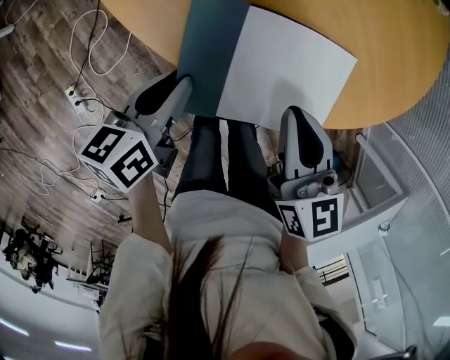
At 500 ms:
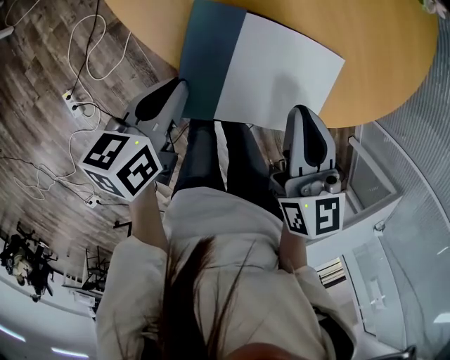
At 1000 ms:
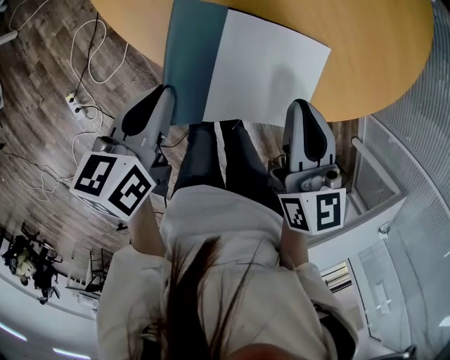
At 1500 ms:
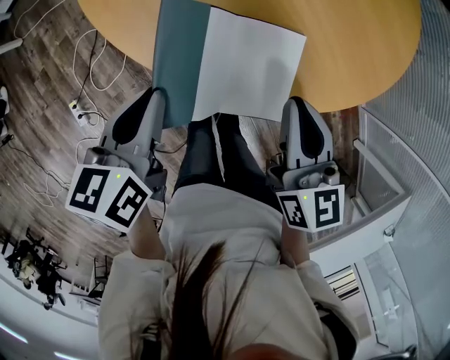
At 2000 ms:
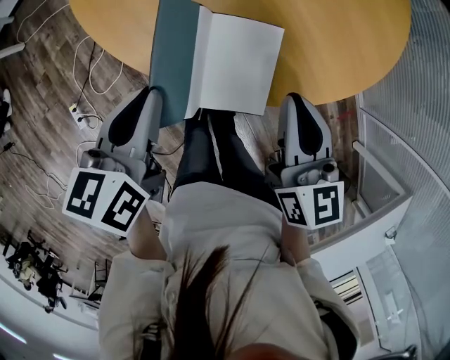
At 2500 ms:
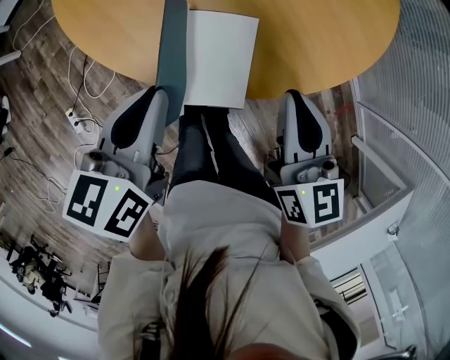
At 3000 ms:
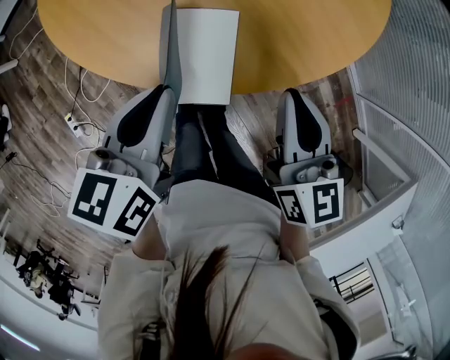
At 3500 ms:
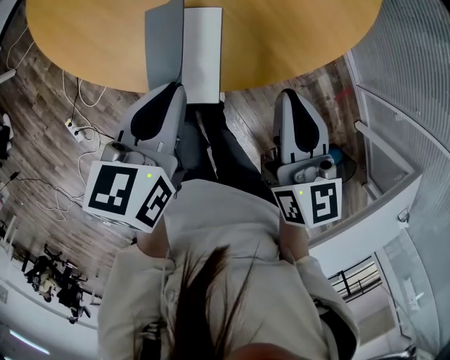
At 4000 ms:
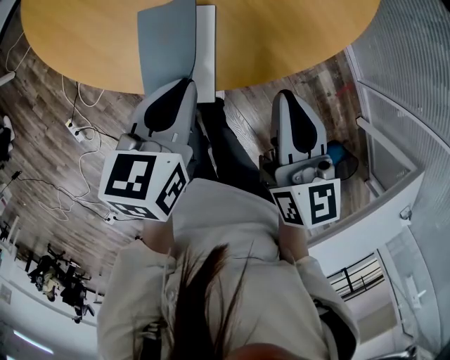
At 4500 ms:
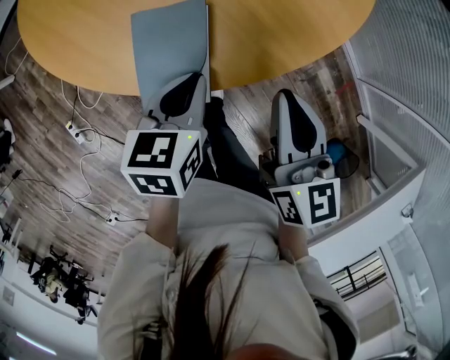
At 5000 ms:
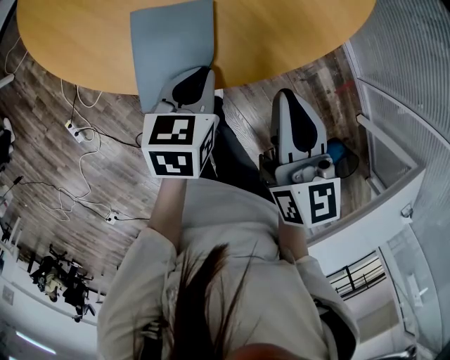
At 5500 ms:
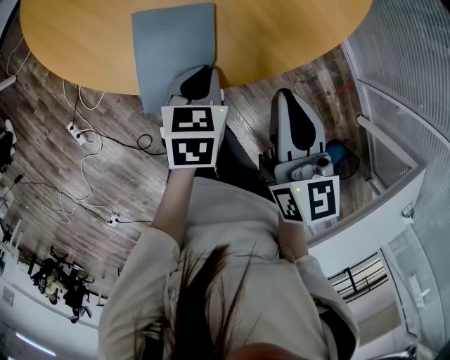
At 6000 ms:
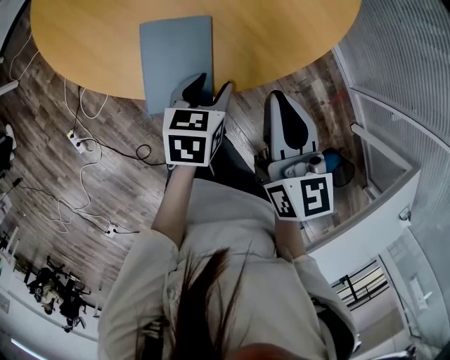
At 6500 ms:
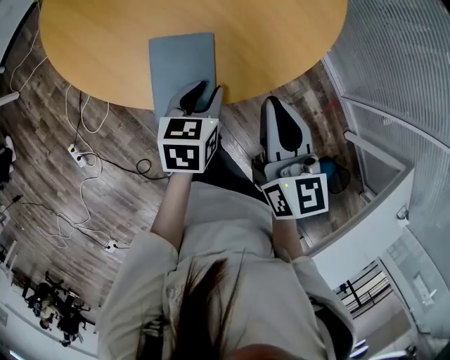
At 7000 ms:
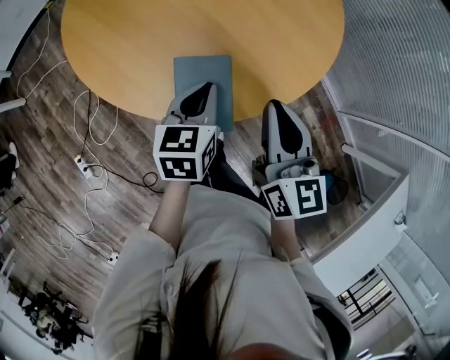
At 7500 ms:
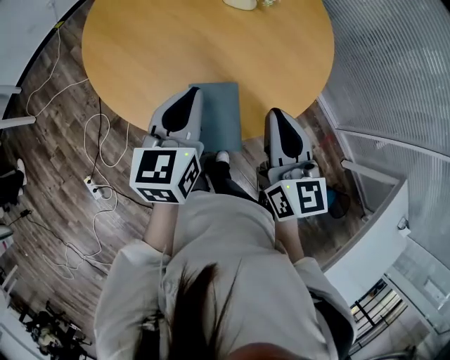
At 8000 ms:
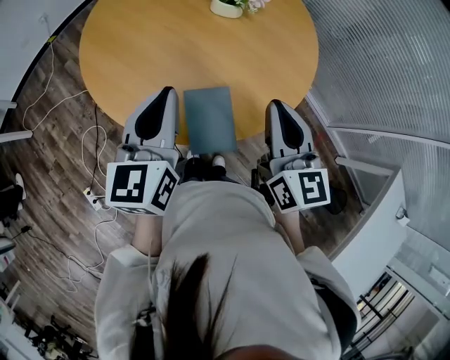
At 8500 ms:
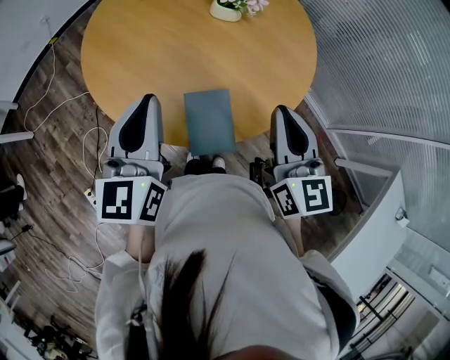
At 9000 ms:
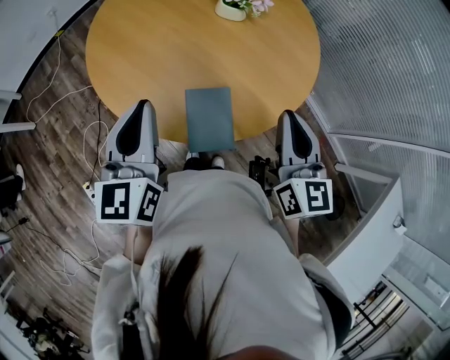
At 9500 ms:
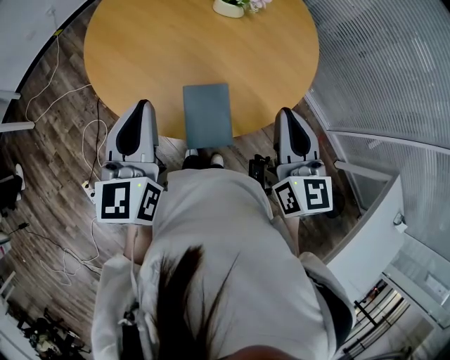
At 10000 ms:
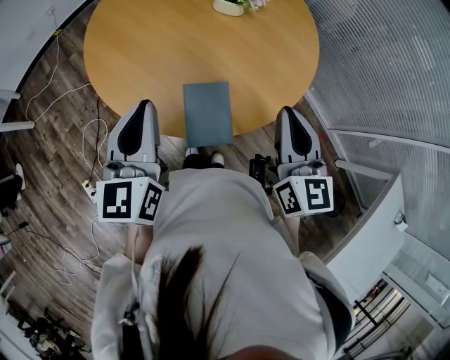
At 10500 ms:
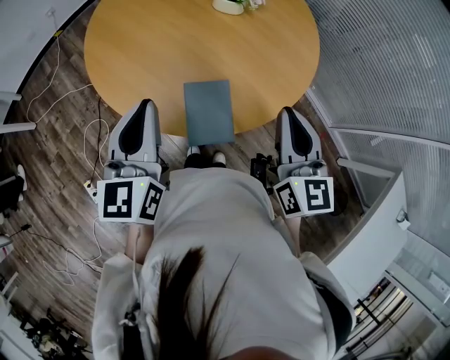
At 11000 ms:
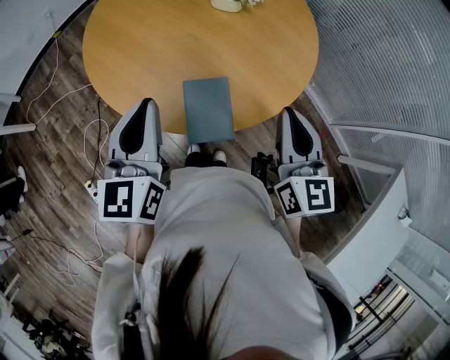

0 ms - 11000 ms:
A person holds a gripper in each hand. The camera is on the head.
0 ms - 2000 ms: The left gripper heads upward and to the right, covering about 15 cm. The right gripper heads to the right and upward, covering approximately 15 cm.
2000 ms - 3500 ms: Both grippers move to the right, about 10 cm.
3500 ms - 5500 ms: The left gripper moves downward and to the right, approximately 15 cm.
5500 ms - 7500 ms: The right gripper moves upward and to the left, approximately 15 cm, while the left gripper travels upward and to the left by about 30 cm, points its fingers approximately 30 degrees further upward, and opens and closes again.
7500 ms - 9000 ms: The right gripper shifts by roughly 5 cm; the left gripper goes approximately 10 cm upward and to the left.
9000 ms - 11000 ms: The grippers stay close to where they were, moving slightly.

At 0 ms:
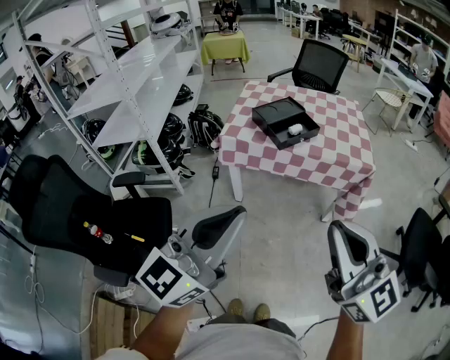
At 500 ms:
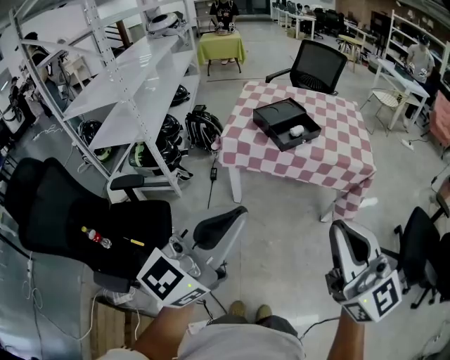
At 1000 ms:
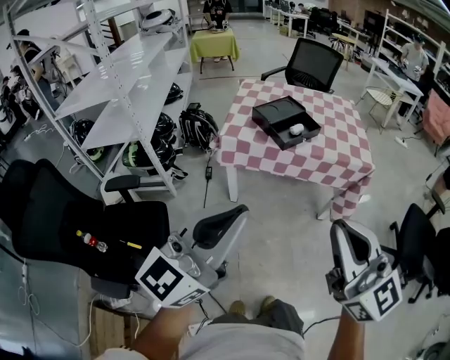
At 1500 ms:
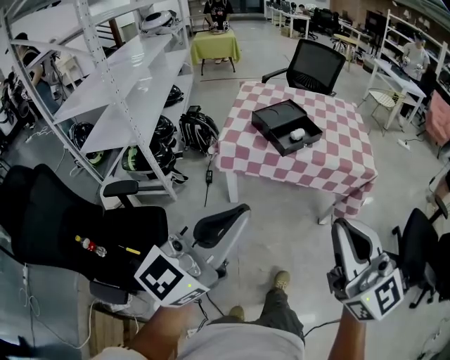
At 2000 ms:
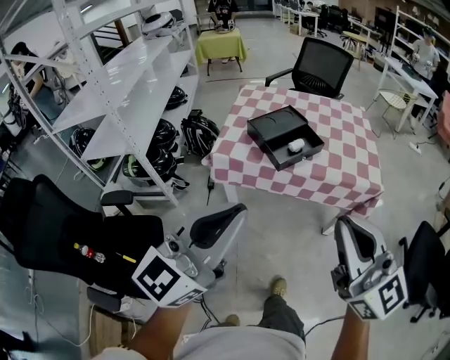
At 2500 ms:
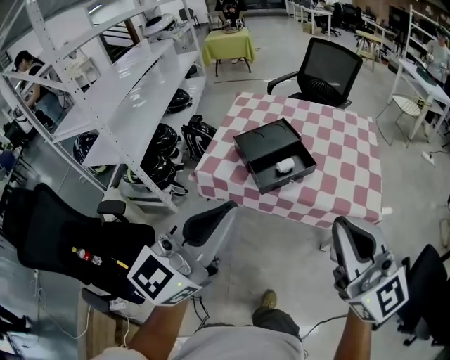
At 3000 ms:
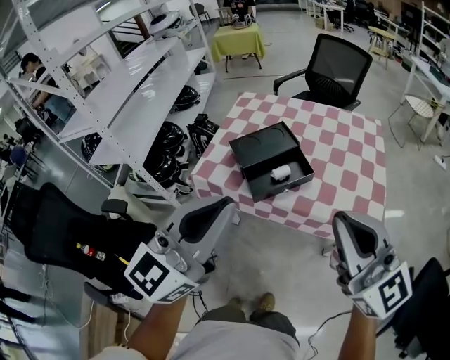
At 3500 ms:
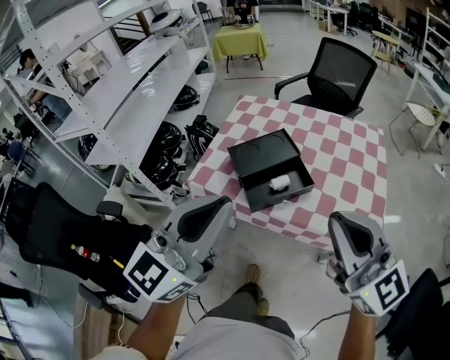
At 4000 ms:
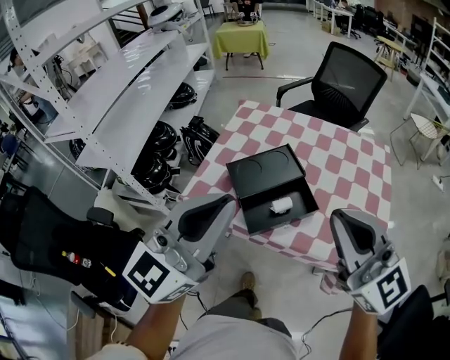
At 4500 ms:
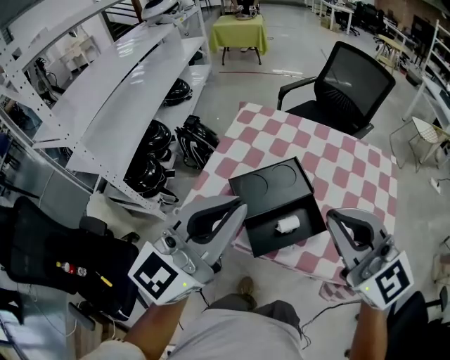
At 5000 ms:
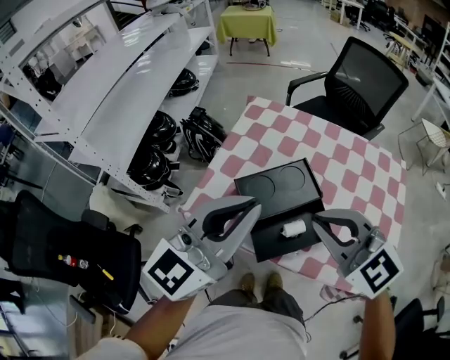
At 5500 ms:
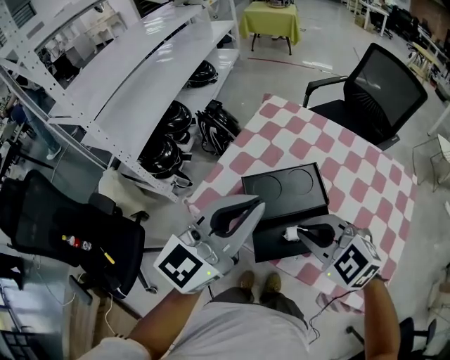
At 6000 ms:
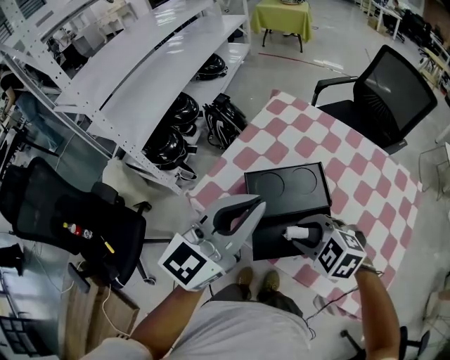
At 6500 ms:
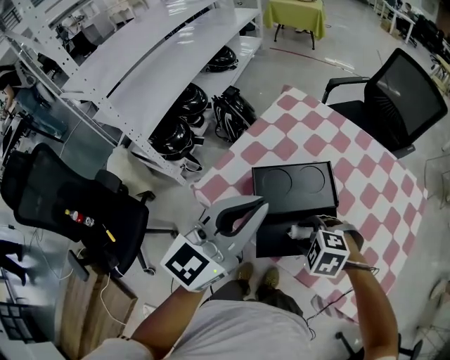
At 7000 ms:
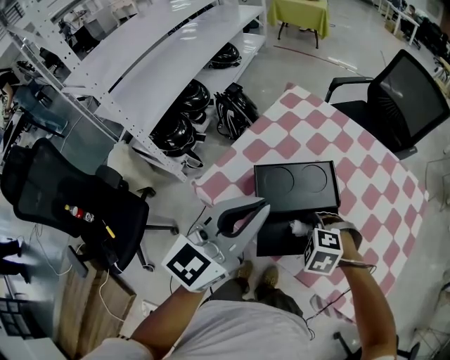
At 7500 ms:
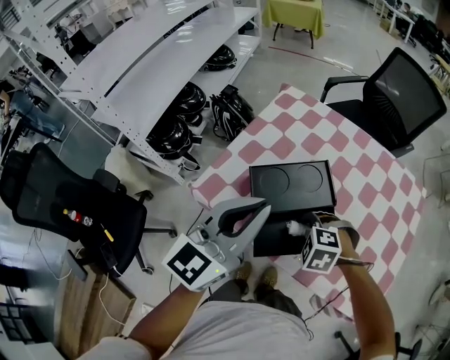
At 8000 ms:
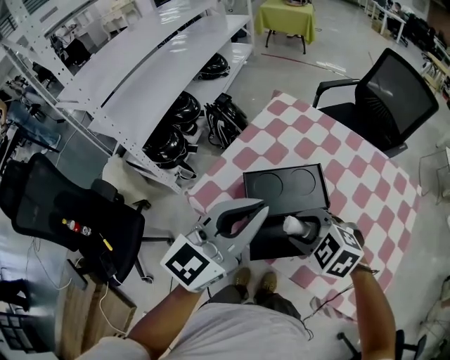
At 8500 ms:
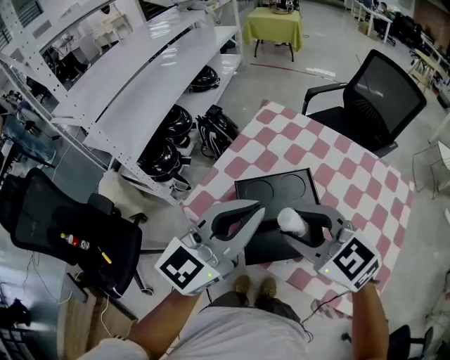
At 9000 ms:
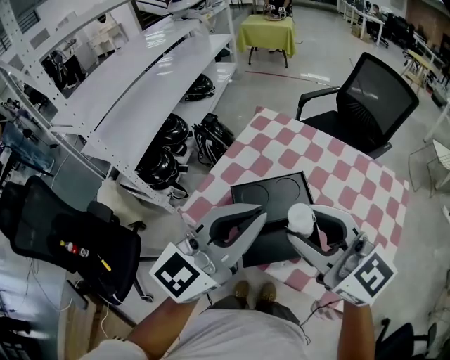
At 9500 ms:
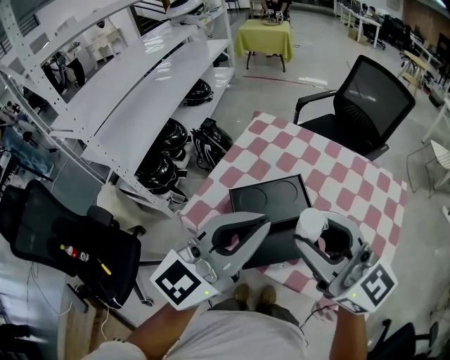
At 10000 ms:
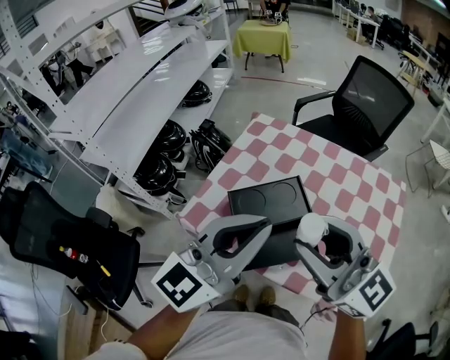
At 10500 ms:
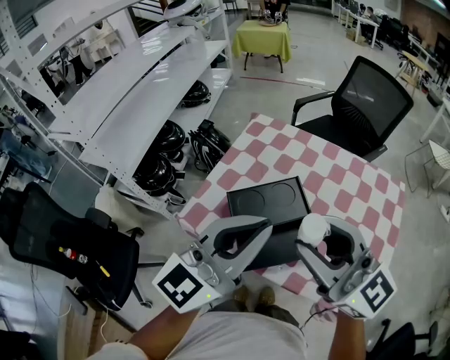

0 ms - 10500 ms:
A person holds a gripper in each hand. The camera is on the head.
0 ms - 2000 ms: The grippers both shift forward by approximately 15 cm.
2000 ms - 4000 ms: Both grippers travel together forward, about 30 cm.
4000 ms - 6500 ms: The right gripper moves downward and forward, about 35 cm, angles its fingers downward, by roughly 70 degrees, and opens. The left gripper goes approximately 15 cm forward and downward.
6500 ms - 8500 ms: The right gripper is displaced upward by approximately 20 cm, and tips its fingers upward by about 40 degrees.
8500 ms - 10500 ms: The left gripper moves about 5 cm. Meanwhile the right gripper heads upward, covering roughly 10 cm, and points its fingers some 40 degrees further upward.

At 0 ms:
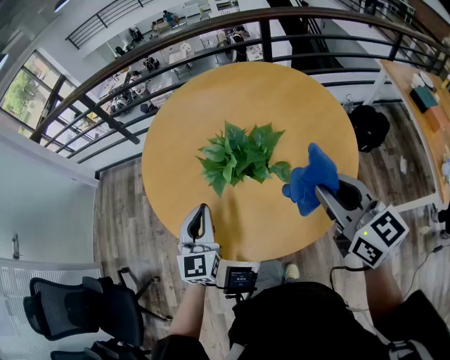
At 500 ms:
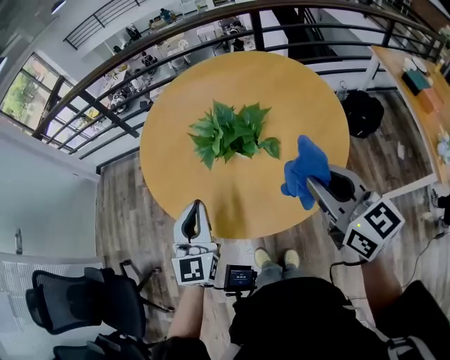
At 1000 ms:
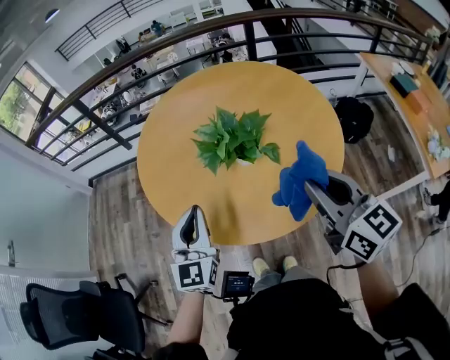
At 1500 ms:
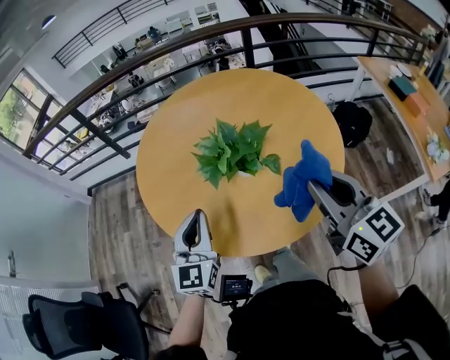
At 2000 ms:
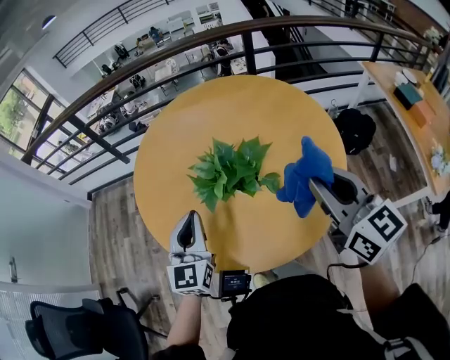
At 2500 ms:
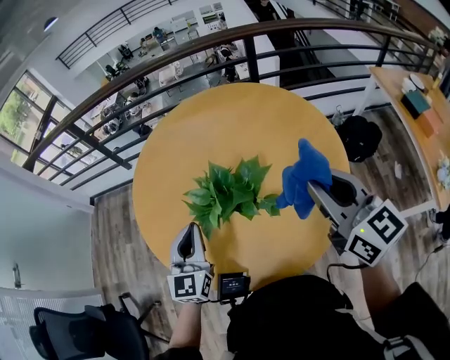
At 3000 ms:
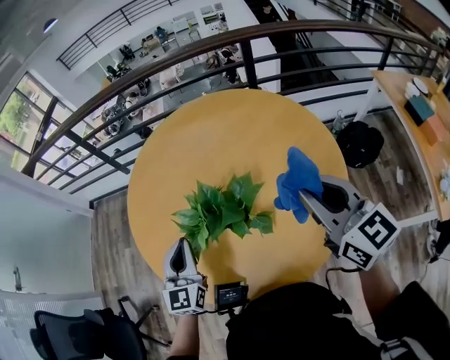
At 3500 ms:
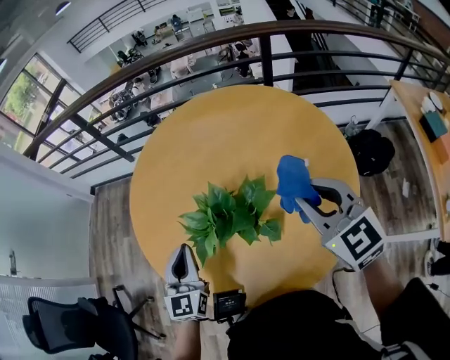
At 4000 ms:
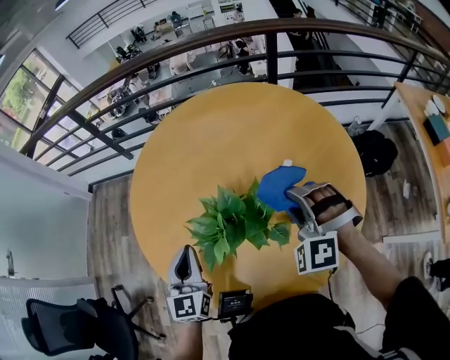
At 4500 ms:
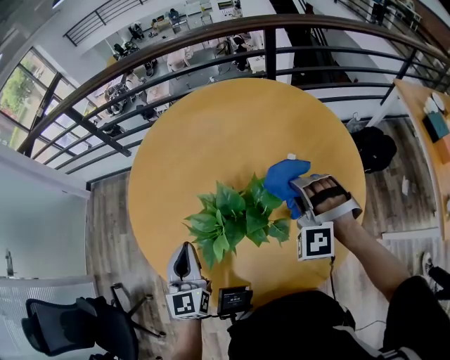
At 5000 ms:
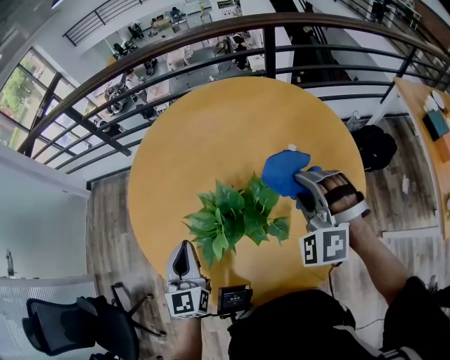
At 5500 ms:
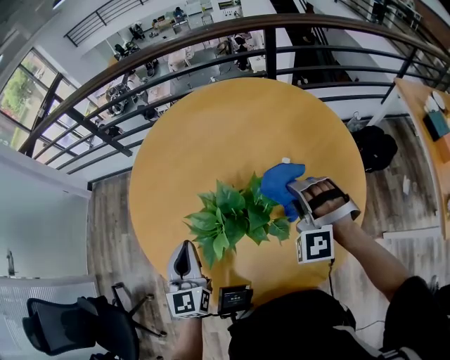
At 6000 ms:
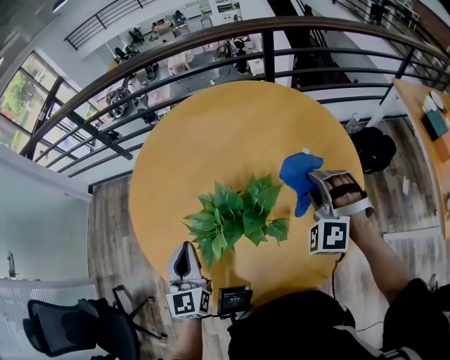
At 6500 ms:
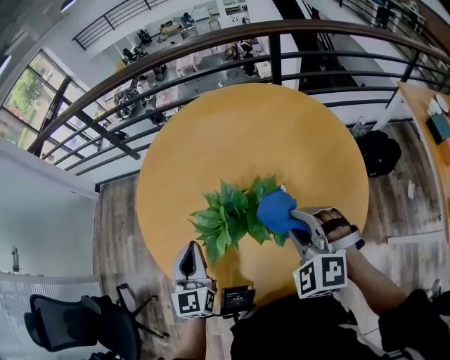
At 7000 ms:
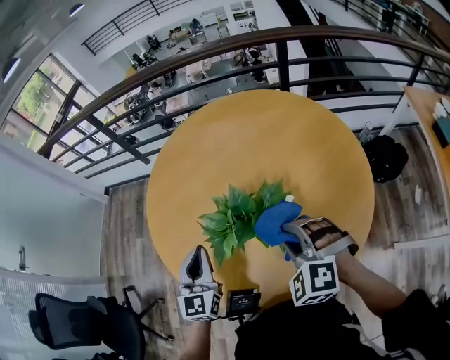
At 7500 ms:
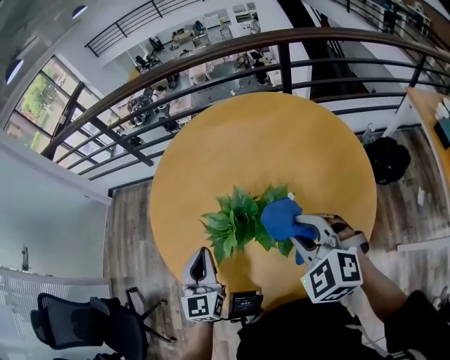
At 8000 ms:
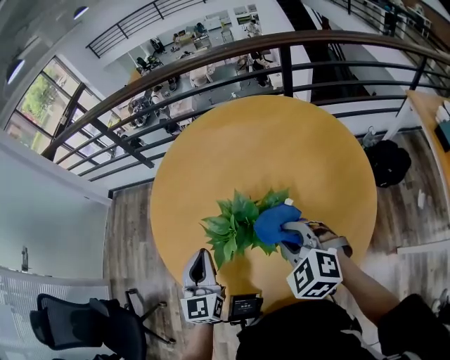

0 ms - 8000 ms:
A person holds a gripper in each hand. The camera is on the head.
0 ms - 2000 ms: The right gripper moves approximately 5 cm backward and comes back. The left gripper goes backward and returns, some 10 cm each way.
2000 ms - 4000 ms: The right gripper moves forward and downward, roughly 25 cm, and rolls counterclockwise, seen from behind, by about 80 degrees. The left gripper is displaced downward and forward by about 10 cm.
4000 ms - 6000 ms: The right gripper moves to the right, some 5 cm.
6000 ms - 8000 ms: The right gripper travels to the left and backward by some 15 cm, and rotates approximately 40 degrees.
